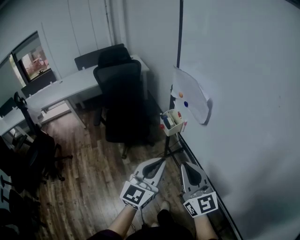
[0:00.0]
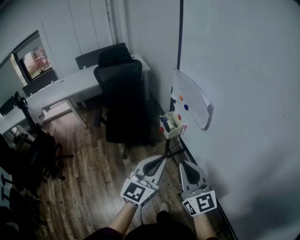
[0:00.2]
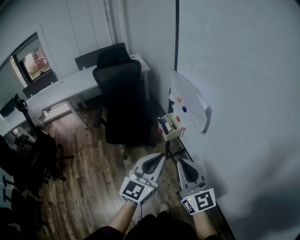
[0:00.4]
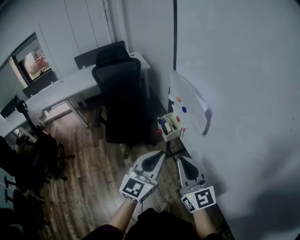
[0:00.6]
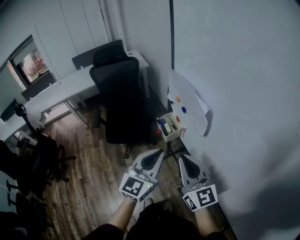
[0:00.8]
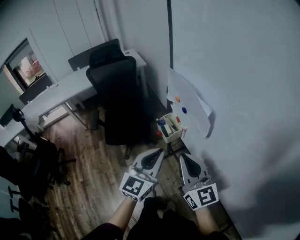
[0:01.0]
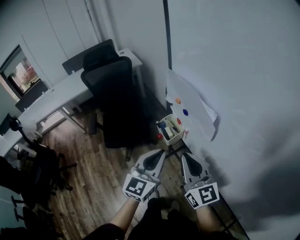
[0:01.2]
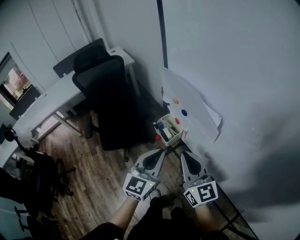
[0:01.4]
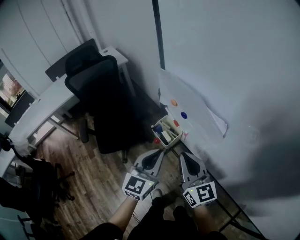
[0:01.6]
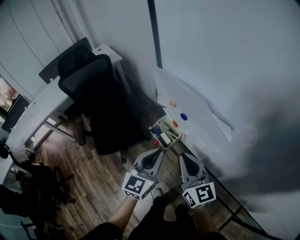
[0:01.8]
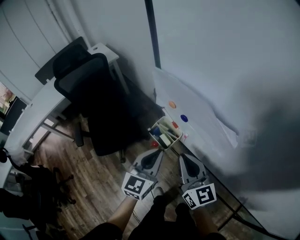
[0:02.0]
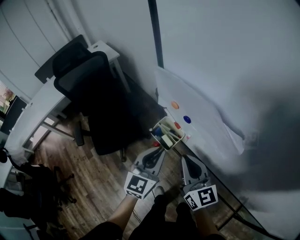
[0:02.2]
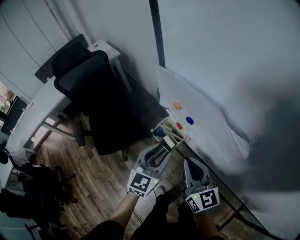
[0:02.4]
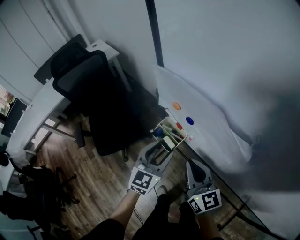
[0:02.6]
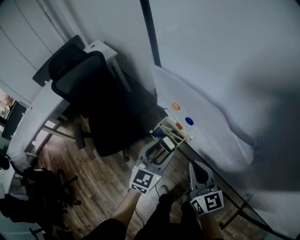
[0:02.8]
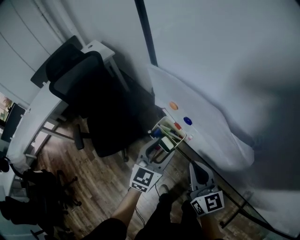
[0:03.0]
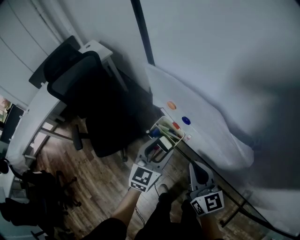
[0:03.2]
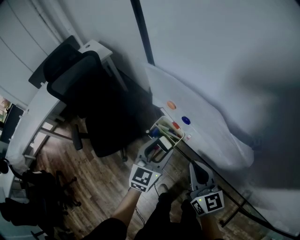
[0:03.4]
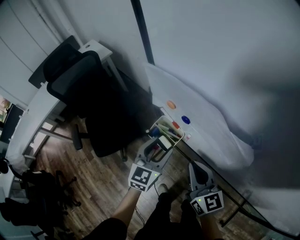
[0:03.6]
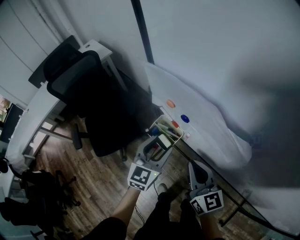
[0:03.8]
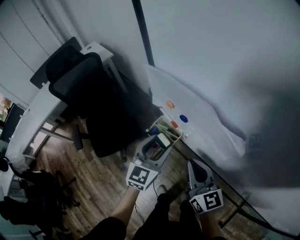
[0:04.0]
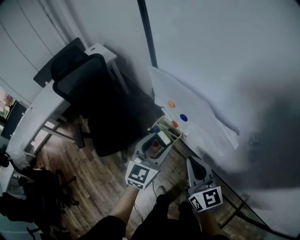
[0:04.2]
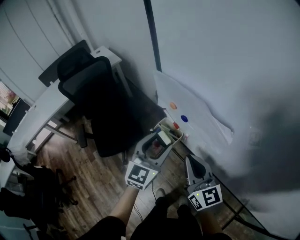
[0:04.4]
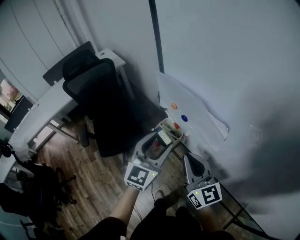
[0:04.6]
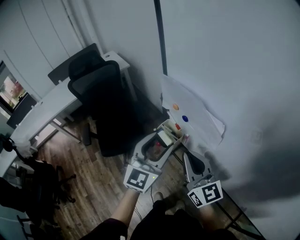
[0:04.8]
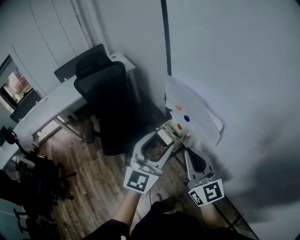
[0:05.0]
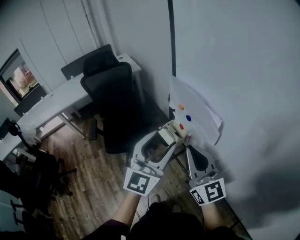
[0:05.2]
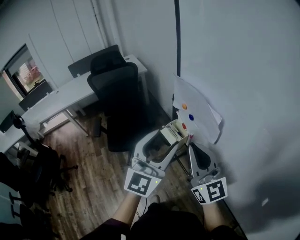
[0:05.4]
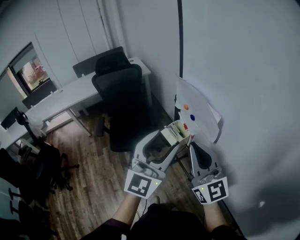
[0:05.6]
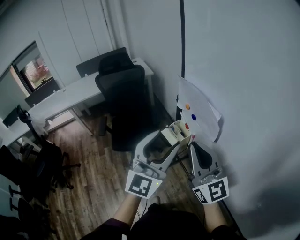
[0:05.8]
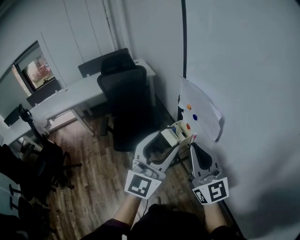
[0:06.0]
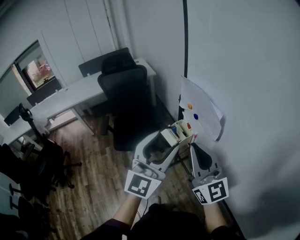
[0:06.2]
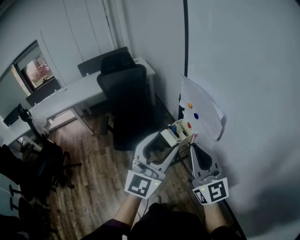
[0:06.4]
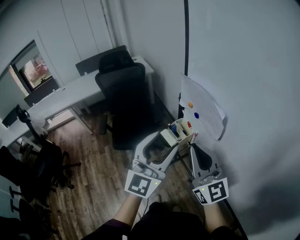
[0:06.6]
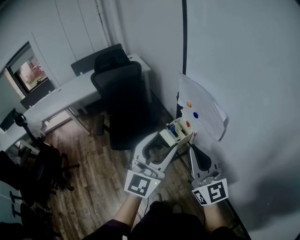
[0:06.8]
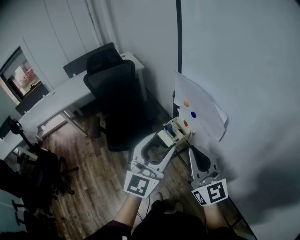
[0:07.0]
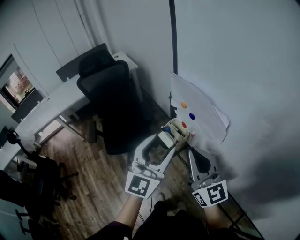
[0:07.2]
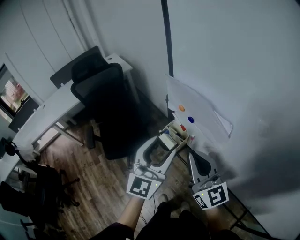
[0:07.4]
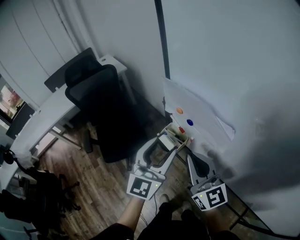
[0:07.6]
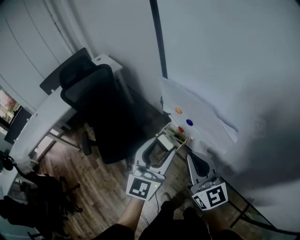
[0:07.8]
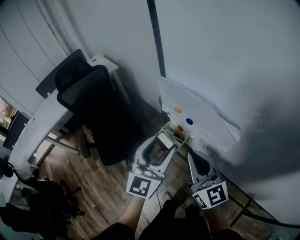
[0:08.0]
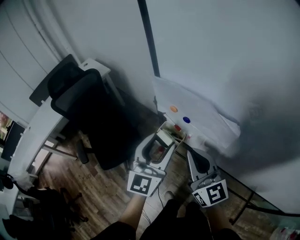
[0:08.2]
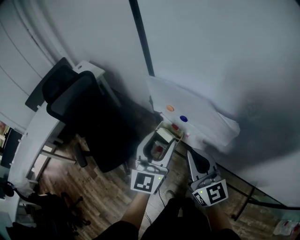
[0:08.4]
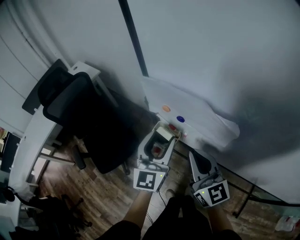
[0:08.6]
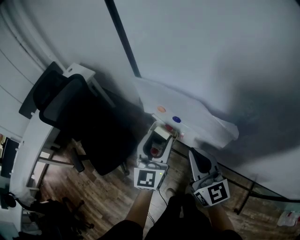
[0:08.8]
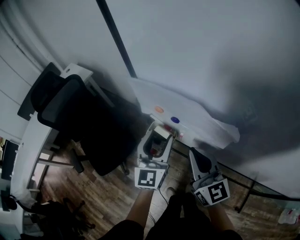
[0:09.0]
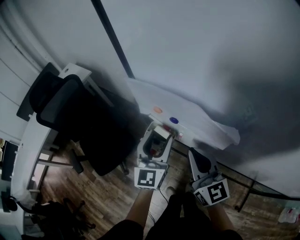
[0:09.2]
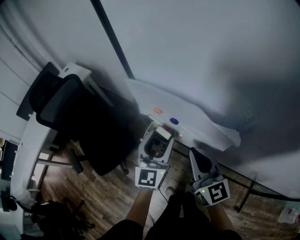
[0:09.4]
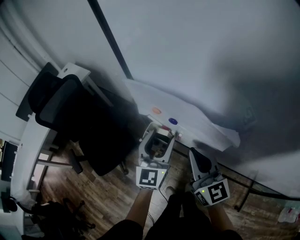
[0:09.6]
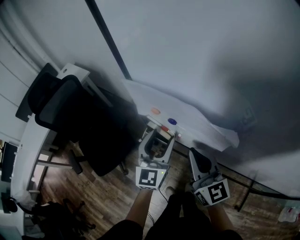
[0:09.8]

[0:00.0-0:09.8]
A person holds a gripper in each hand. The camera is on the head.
0:00.0 to 0:01.4: Both grippers travel together forward, some 20 cm.
0:01.4 to 0:02.8: The right gripper heads downward, covering some 10 cm; the left gripper heads forward and downward, covering roughly 15 cm, and opens.
0:02.8 to 0:04.2: The left gripper is displaced upward by approximately 5 cm.
0:04.2 to 0:05.6: The two grippers go approximately 25 cm upward and backward. The right gripper turns by approximately 30 degrees, while the left gripper changes its angle by roughly 30 degrees.
0:05.6 to 0:07.0: The left gripper ends up about 5 cm from where it was.
0:07.0 to 0:08.4: The left gripper heads forward and downward, covering roughly 15 cm. Meanwhile the right gripper is displaced downward and forward by approximately 10 cm, and rotates roughly 20 degrees.
0:08.4 to 0:09.8: The right gripper changes place by approximately 5 cm, while the left gripper travels downward by some 5 cm.

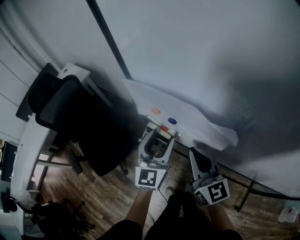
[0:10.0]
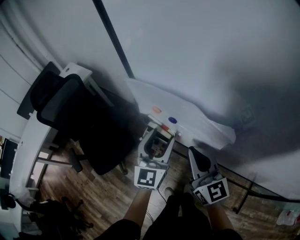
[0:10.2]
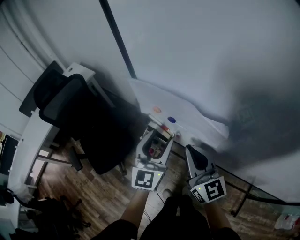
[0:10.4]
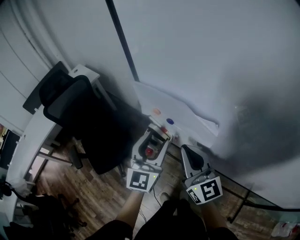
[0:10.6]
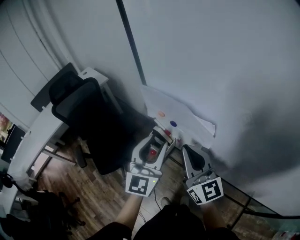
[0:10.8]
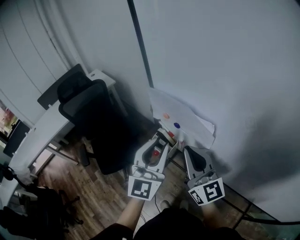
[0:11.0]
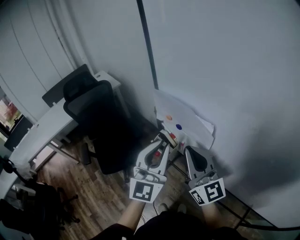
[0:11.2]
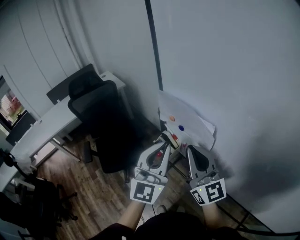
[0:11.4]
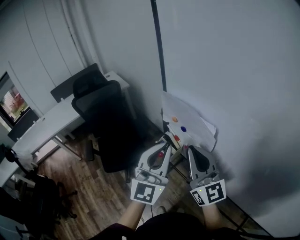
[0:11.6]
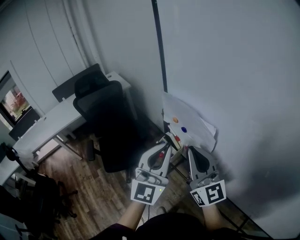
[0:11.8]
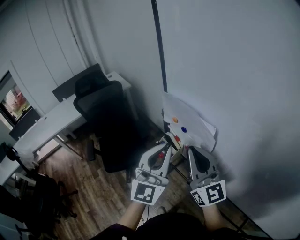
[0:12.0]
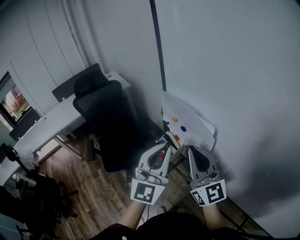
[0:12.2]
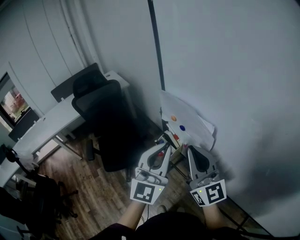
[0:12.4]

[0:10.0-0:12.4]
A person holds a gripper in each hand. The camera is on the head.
0:10.0 to 0:11.2: The left gripper moves upward and backward, some 20 cm, turns by some 20 degrees, and closes its fingers, while the right gripper moves upward, some 15 cm, and turns by roughly 20 degrees.
0:11.2 to 0:12.4: The grippers move only a little.

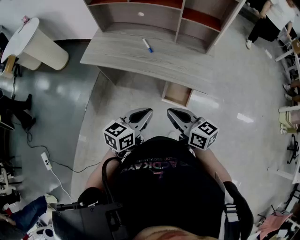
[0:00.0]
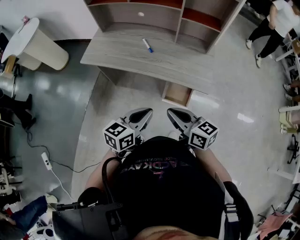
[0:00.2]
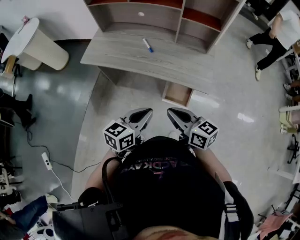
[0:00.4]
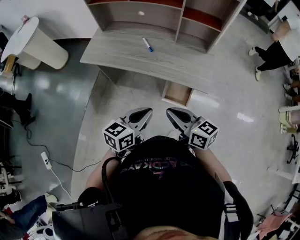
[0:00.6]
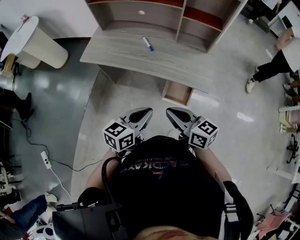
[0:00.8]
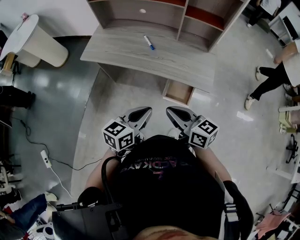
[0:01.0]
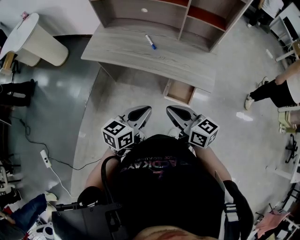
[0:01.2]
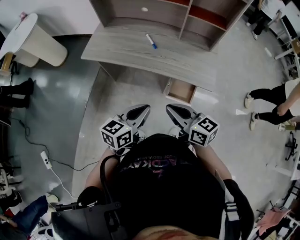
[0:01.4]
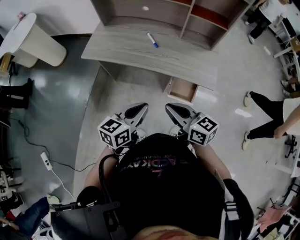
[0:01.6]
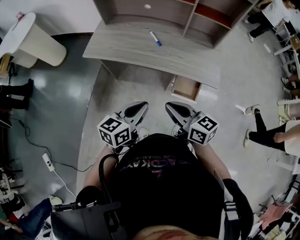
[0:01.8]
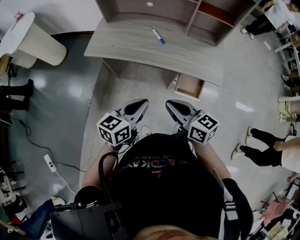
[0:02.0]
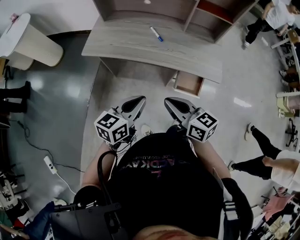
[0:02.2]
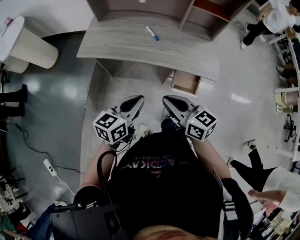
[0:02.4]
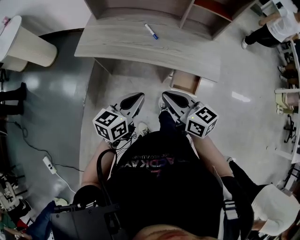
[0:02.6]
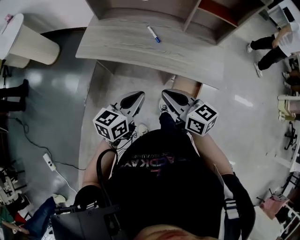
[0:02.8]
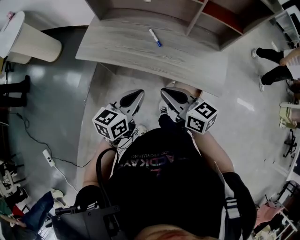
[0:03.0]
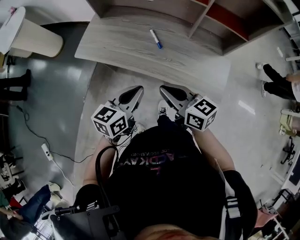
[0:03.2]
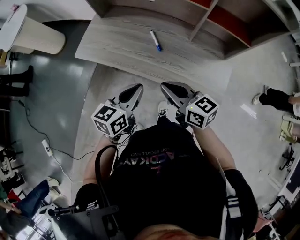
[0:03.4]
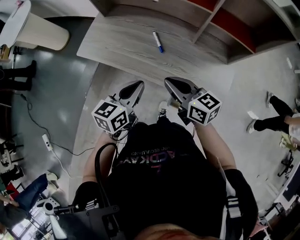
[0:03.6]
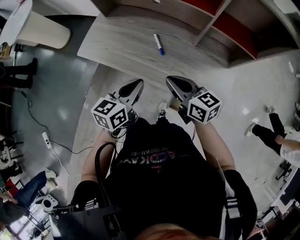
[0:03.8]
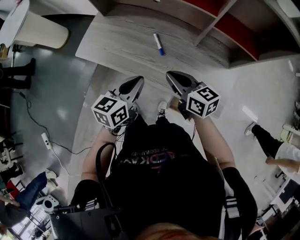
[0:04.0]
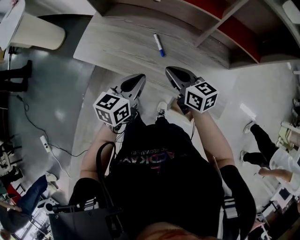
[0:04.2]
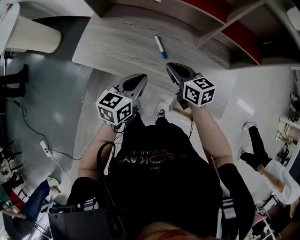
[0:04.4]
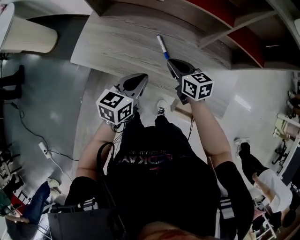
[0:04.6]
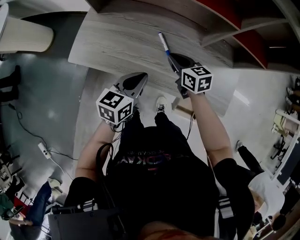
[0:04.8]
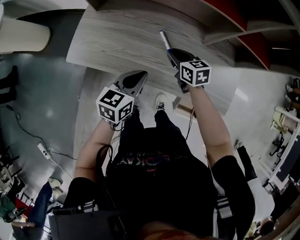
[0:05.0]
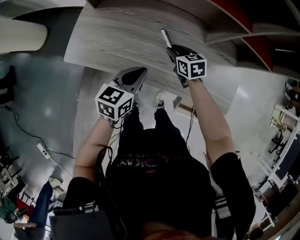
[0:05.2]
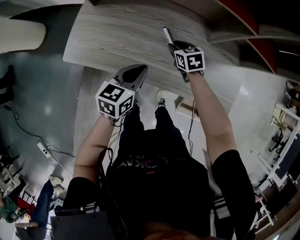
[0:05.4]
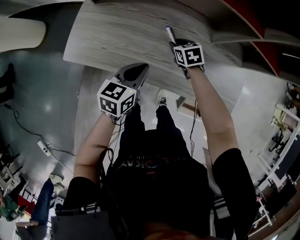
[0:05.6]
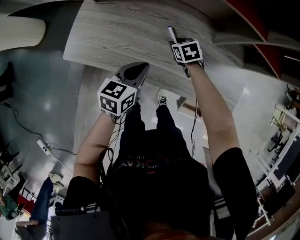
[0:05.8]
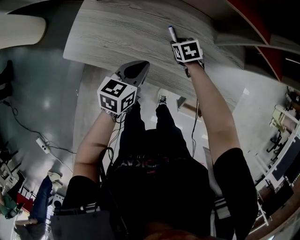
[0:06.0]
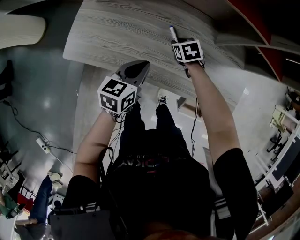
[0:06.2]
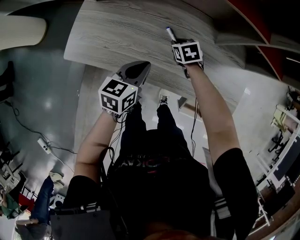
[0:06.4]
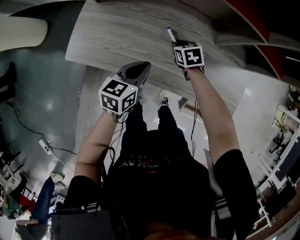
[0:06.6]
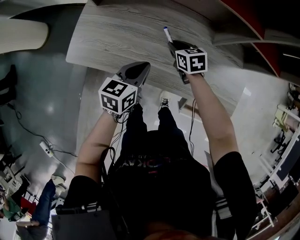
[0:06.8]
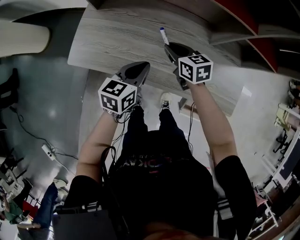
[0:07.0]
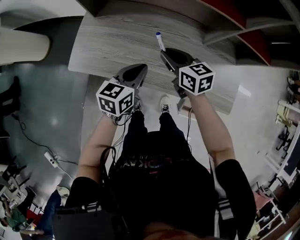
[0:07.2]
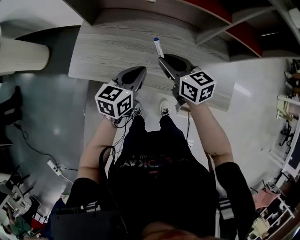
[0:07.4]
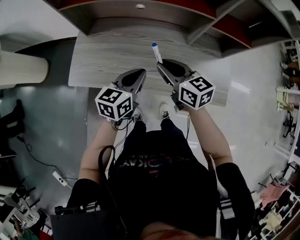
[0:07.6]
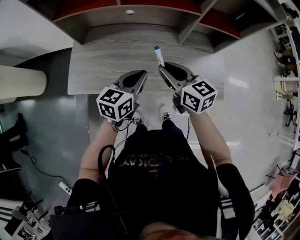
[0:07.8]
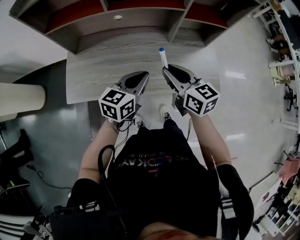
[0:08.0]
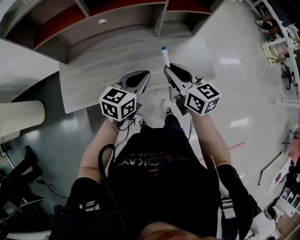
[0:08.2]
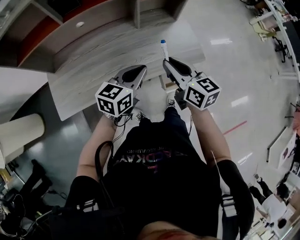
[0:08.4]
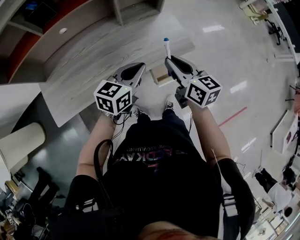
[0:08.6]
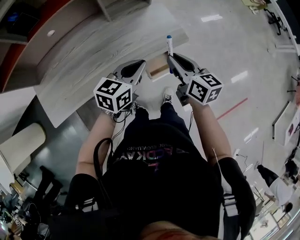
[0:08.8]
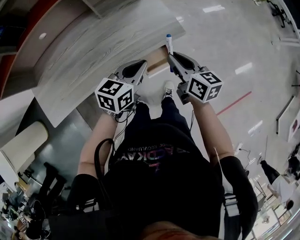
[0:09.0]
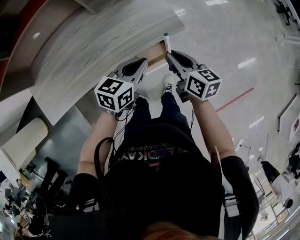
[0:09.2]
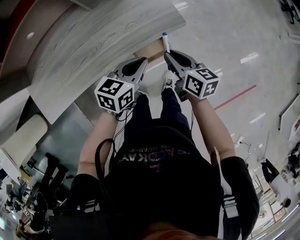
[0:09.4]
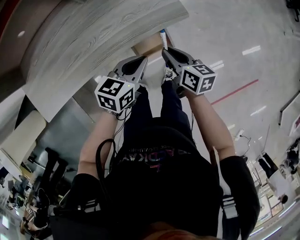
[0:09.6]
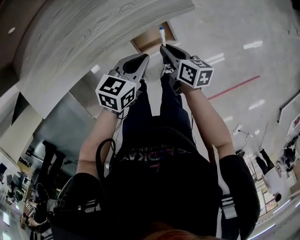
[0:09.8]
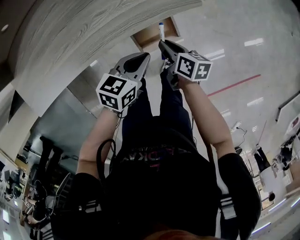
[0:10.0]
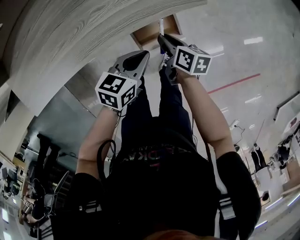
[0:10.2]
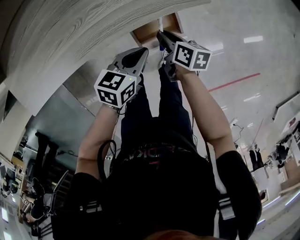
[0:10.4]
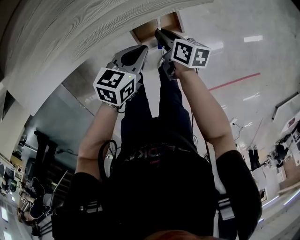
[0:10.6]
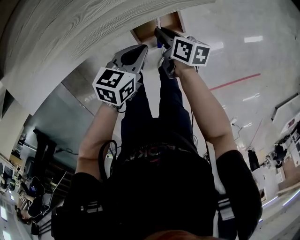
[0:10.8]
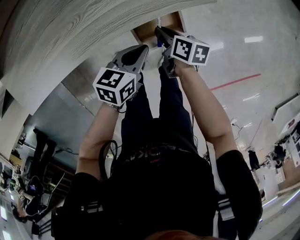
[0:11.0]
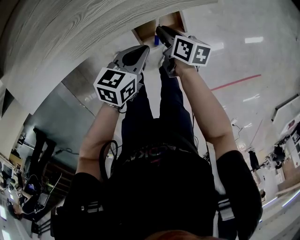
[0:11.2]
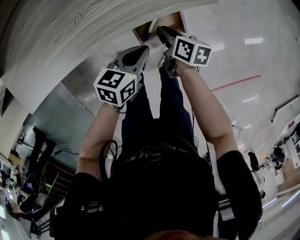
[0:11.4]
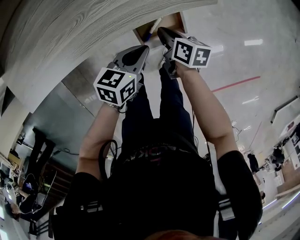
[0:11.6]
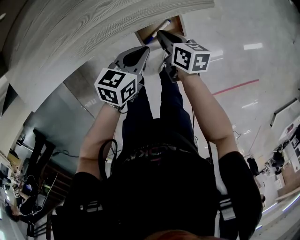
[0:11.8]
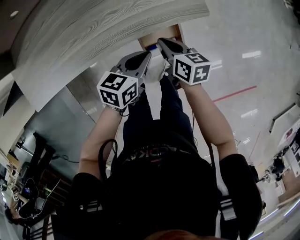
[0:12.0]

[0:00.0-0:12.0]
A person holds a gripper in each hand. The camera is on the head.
0:00.0 to 0:01.6: Both grippers move to the left, approximately 5 cm.
0:01.6 to 0:03.0: The two grippers go roughly 10 cm forward.
0:03.0 to 0:04.4: The left gripper travels forward by roughly 10 cm. Meanwhile the right gripper shifts about 20 cm forward and downward.
0:04.4 to 0:06.0: The right gripper moves downward and forward, approximately 20 cm, tips its fingers downward by roughly 40 degrees, and opens; the left gripper is displaced downward by approximately 5 cm.
0:06.0 to 0:07.6: The left gripper heads upward, covering roughly 5 cm; the right gripper heads upward and backward, covering approximately 25 cm, and points its fingers roughly 50 degrees further upward.
0:07.6 to 0:09.0: The right gripper moves approximately 30 cm, and changes its angle by approximately 50 degrees. The left gripper ends up some 25 cm from where it was, and turns by roughly 40 degrees.
0:09.0 to 0:10.4: The left gripper moves downward and backward, roughly 15 cm. Meanwhile the right gripper heads downward, covering some 20 cm, and changes its angle by about 30 degrees.
0:10.4 to 0:12.0: The right gripper moves upward, roughly 5 cm.
